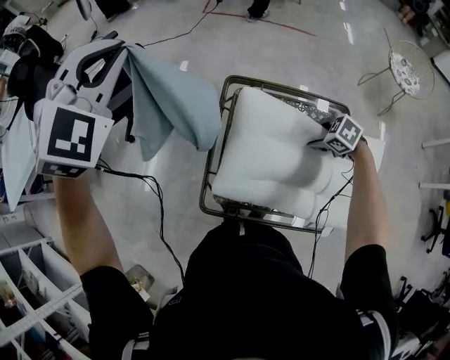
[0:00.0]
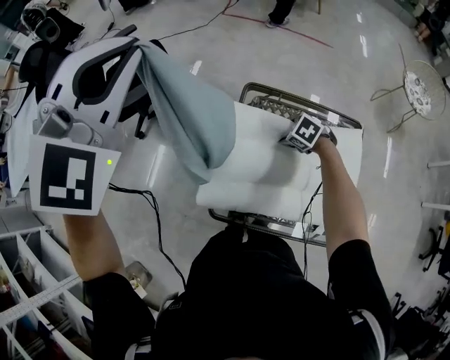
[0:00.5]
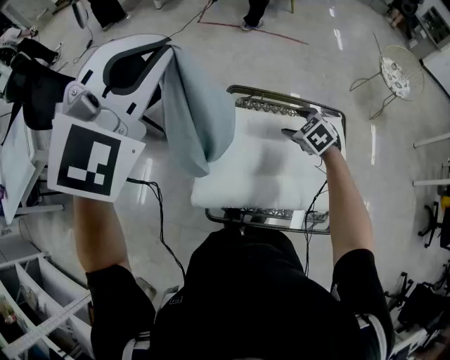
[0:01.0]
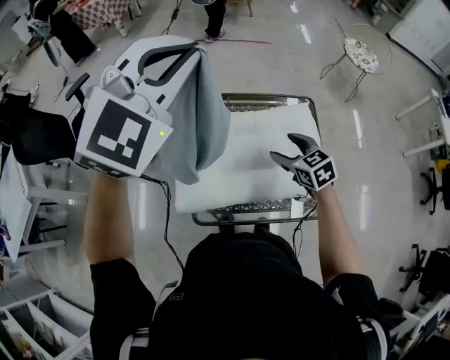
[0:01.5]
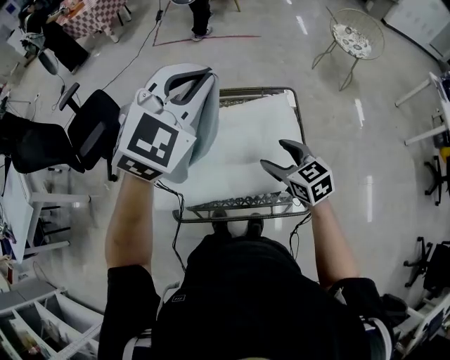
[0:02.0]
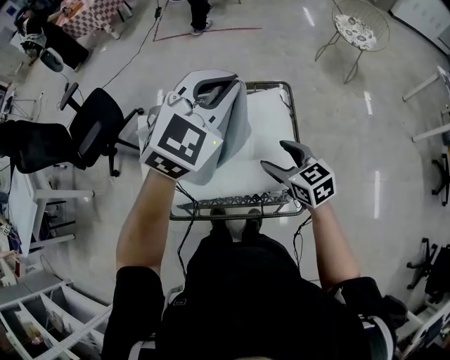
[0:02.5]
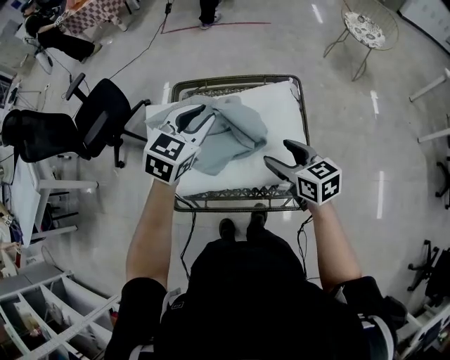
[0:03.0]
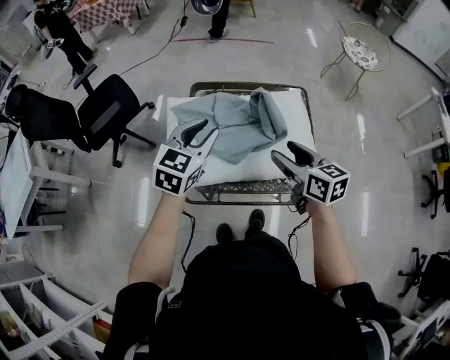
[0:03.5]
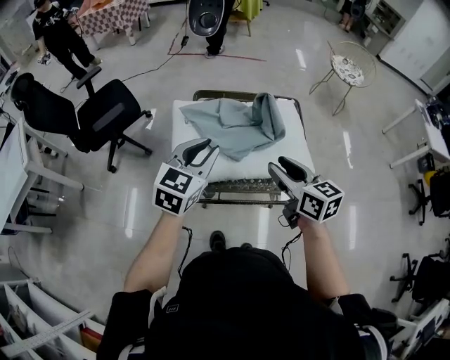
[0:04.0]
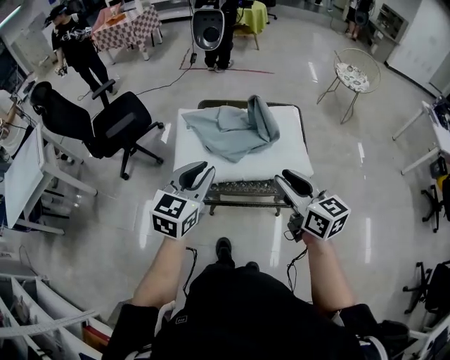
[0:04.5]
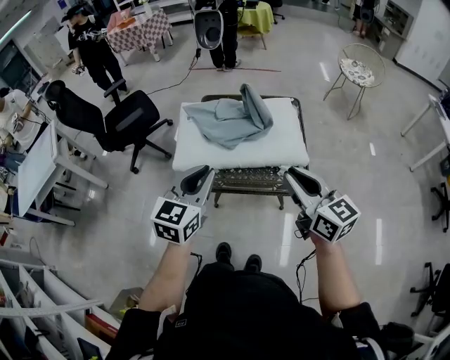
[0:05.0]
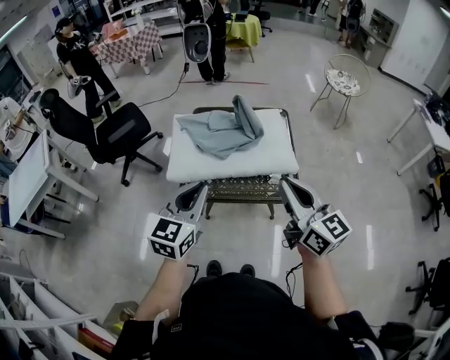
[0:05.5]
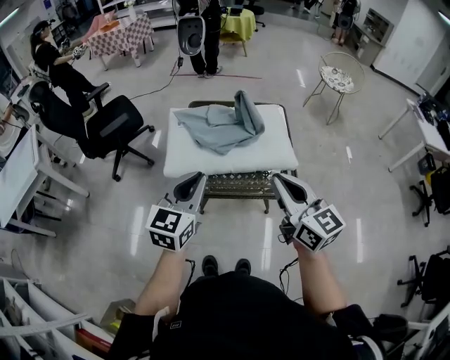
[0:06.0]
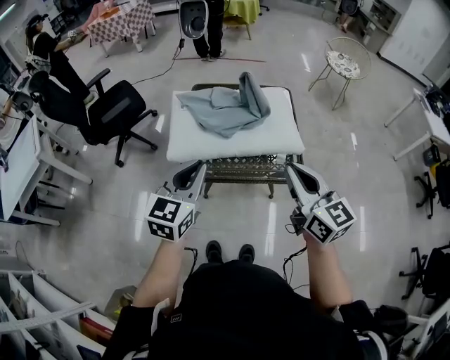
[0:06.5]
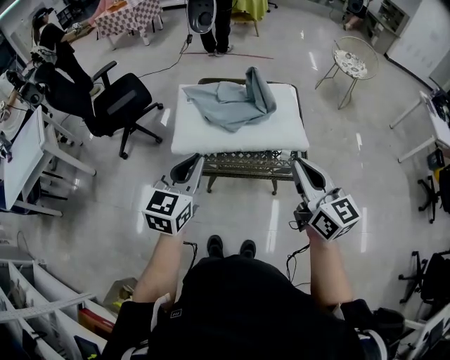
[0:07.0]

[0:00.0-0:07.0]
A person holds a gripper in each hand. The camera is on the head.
0:00.0 to 0:02.0: The left gripper moves approximately 30 cm, and rotates approximately 30 degrees, while the right gripper ends up some 20 cm from where it was, and points its fingers about 40 degrees further upward.
0:02.0 to 0:03.5: The right gripper heads backward, covering approximately 5 cm, and swivels roughly 20 degrees, while the left gripper is displaced downward, to the left and backward by some 25 cm, rotates about 40 degrees, and opens.
0:03.5 to 0:05.0: The left gripper goes approximately 25 cm backward. Meanwhile the right gripper heads backward and upward, covering some 25 cm, turns by some 20 degrees, and closes.
0:05.0 to 0:07.0: The left gripper travels to the left by approximately 5 cm.

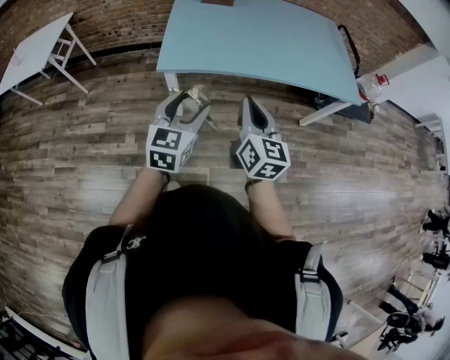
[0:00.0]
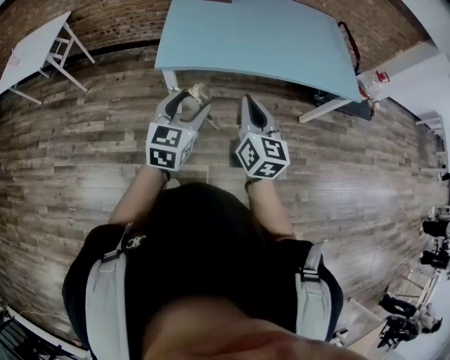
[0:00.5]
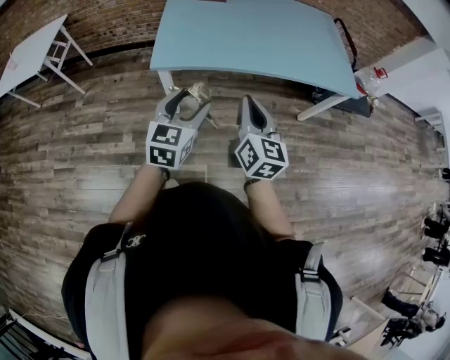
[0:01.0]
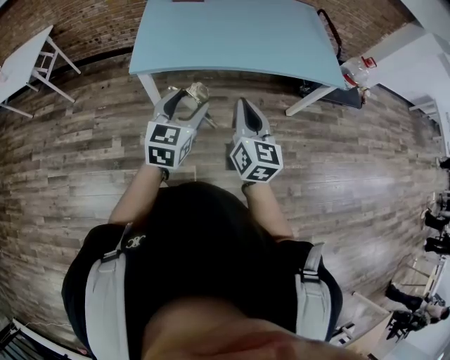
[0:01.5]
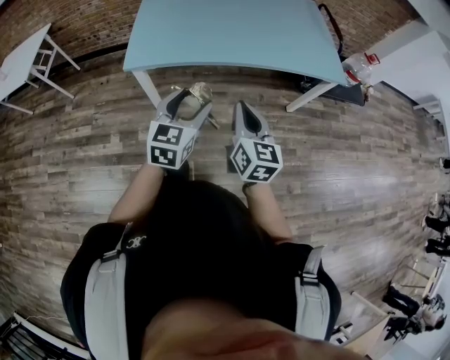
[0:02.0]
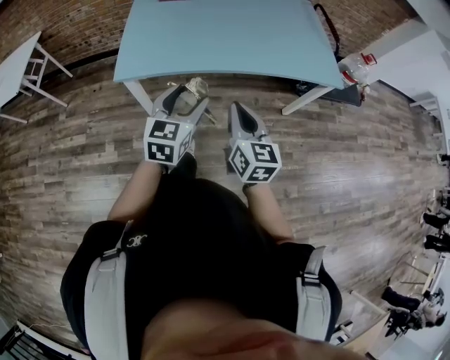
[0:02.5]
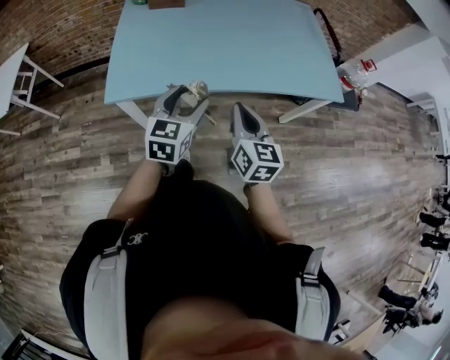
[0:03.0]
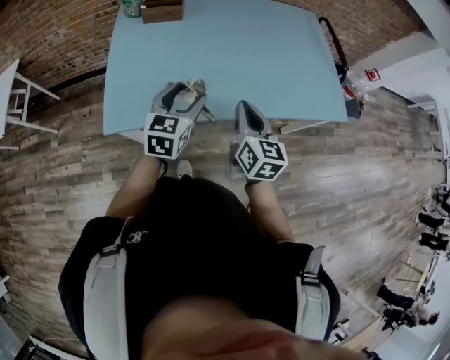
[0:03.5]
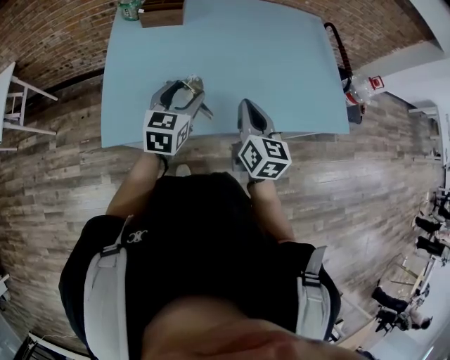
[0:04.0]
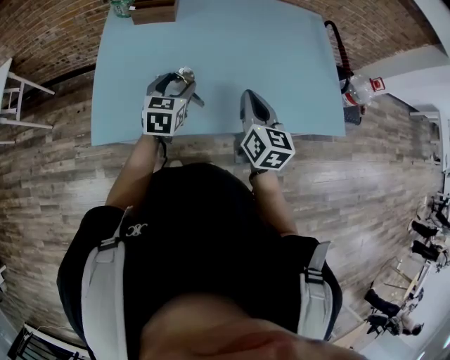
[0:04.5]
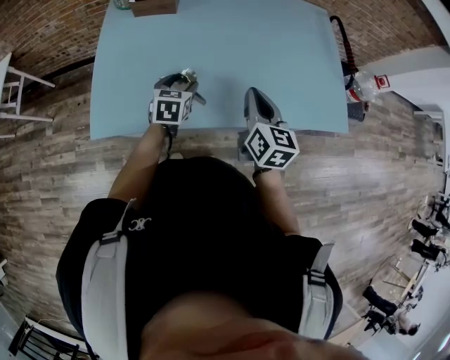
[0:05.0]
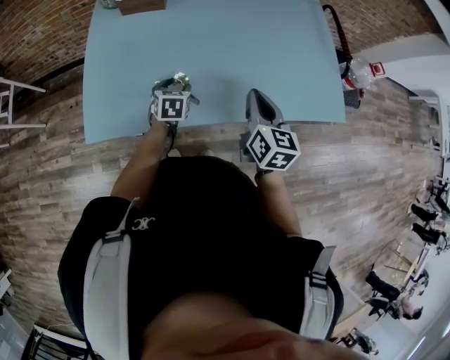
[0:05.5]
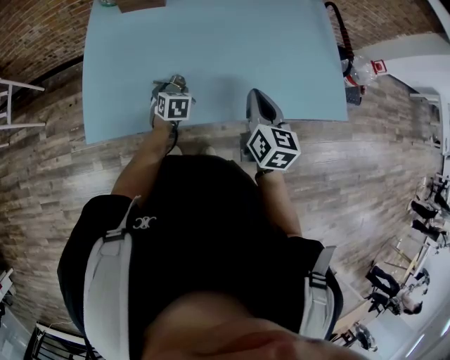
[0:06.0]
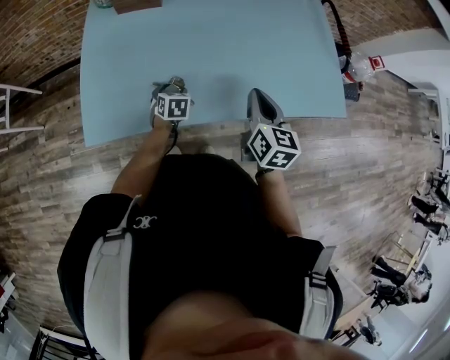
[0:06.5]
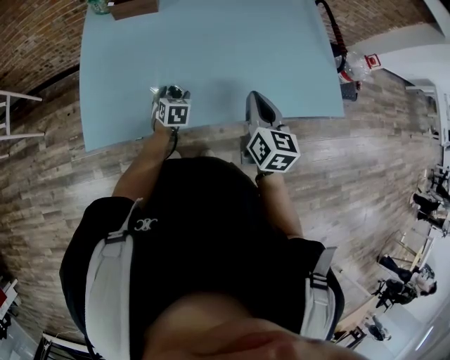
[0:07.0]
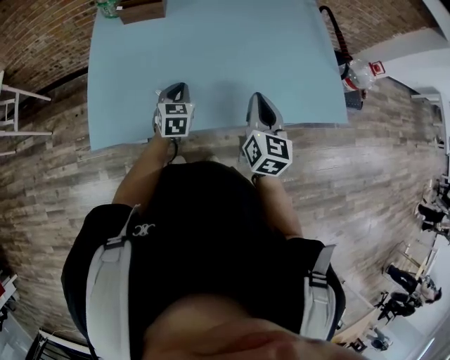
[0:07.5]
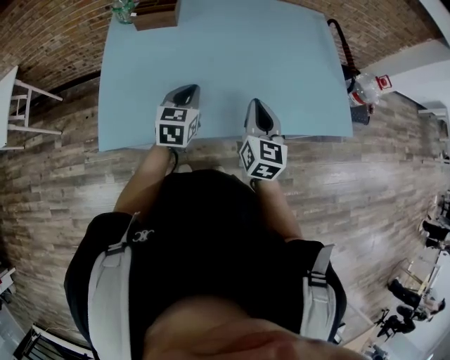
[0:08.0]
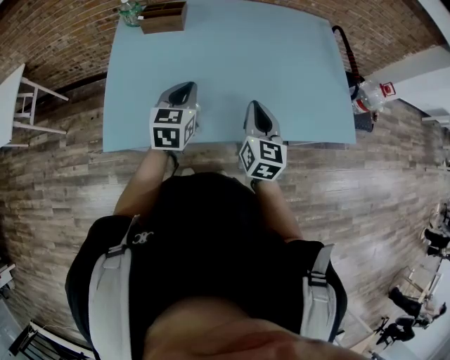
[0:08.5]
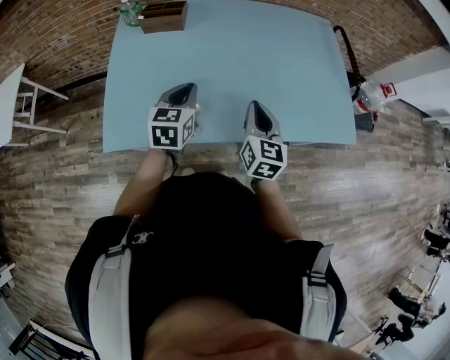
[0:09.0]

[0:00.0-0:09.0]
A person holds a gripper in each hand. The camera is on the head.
0:00.0 to 0:02.0: Both grippers travel together to the right, some 15 cm.
0:02.0 to 0:04.5: The two grippers go roughly 40 cm forward.
0:04.5 to 0:07.0: The left gripper heads downward, covering roughly 20 cm, and swivels roughly 20 degrees.
0:07.0 to 0:09.0: The left gripper goes about 20 cm upward, rotates approximately 20 degrees, and closes up.

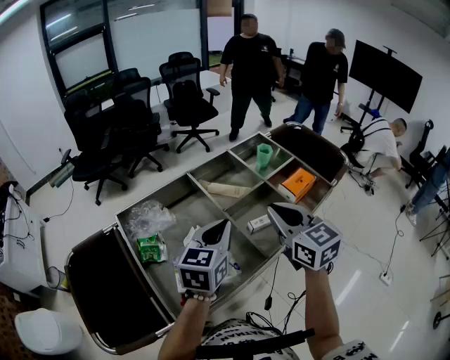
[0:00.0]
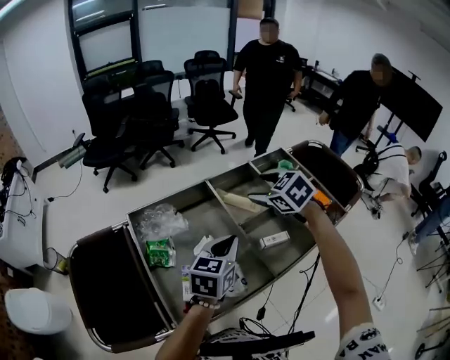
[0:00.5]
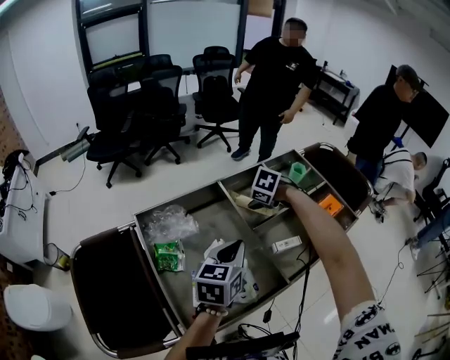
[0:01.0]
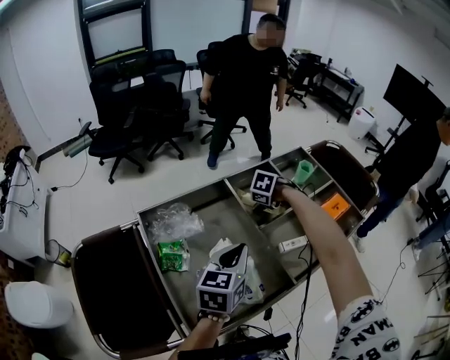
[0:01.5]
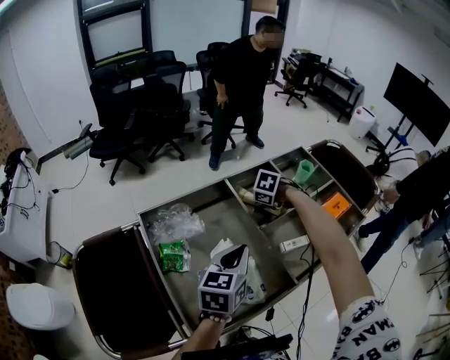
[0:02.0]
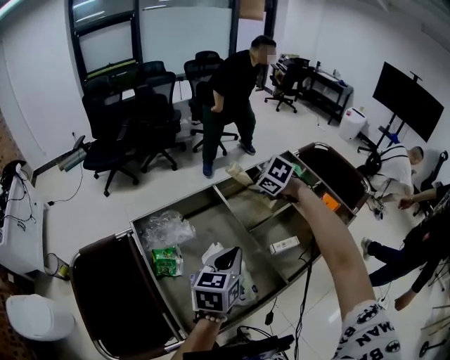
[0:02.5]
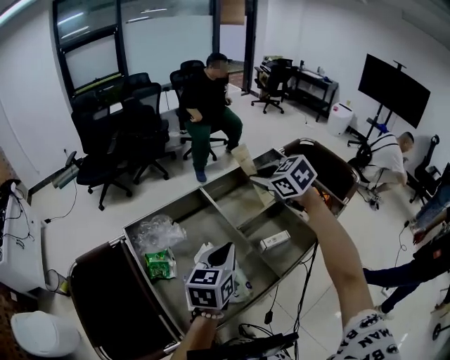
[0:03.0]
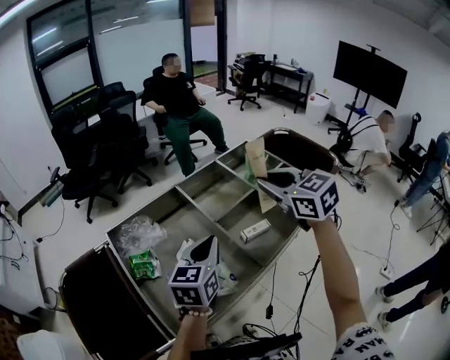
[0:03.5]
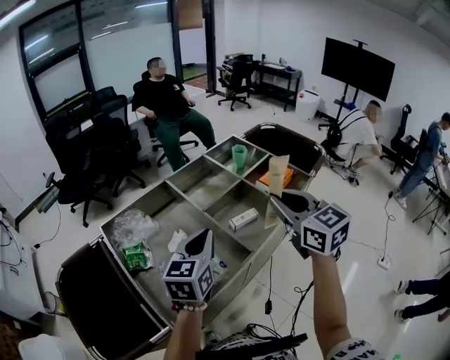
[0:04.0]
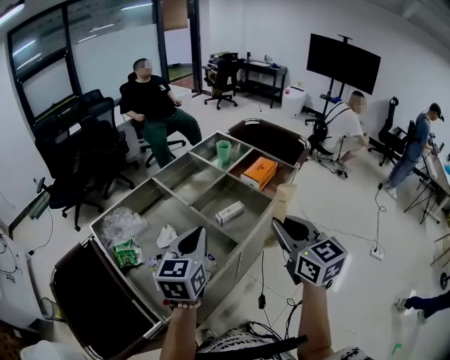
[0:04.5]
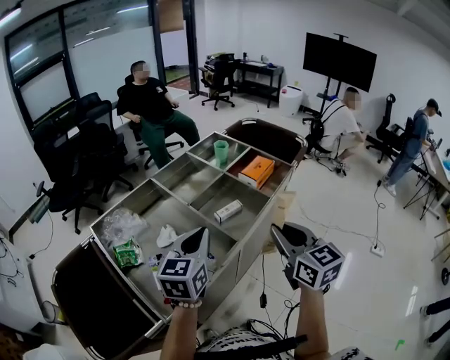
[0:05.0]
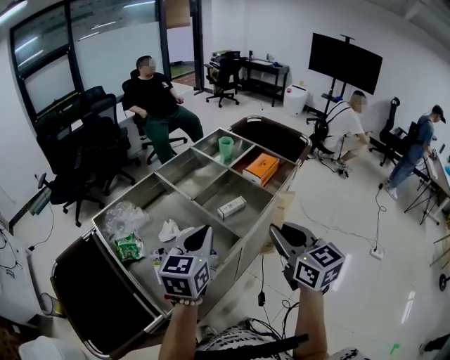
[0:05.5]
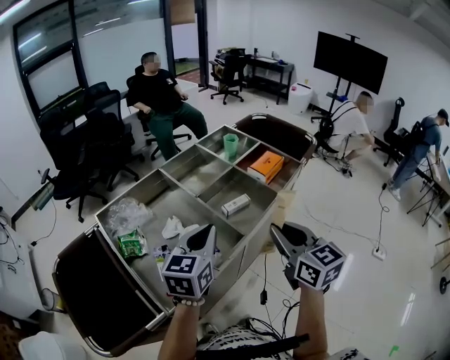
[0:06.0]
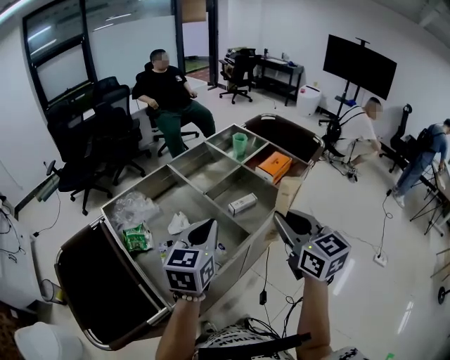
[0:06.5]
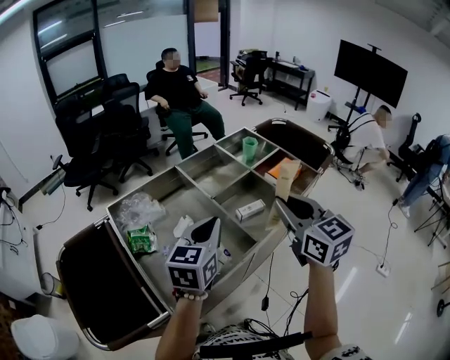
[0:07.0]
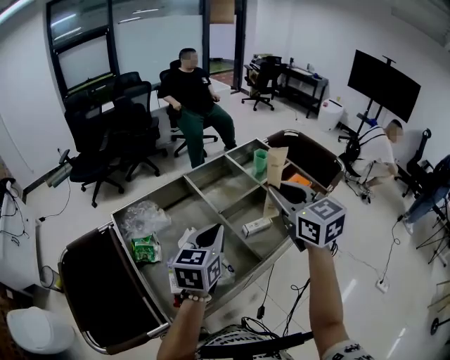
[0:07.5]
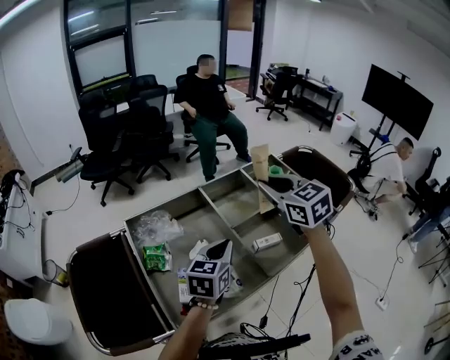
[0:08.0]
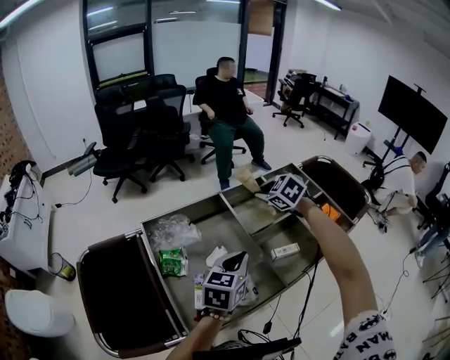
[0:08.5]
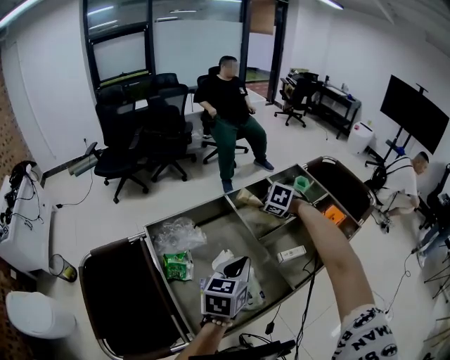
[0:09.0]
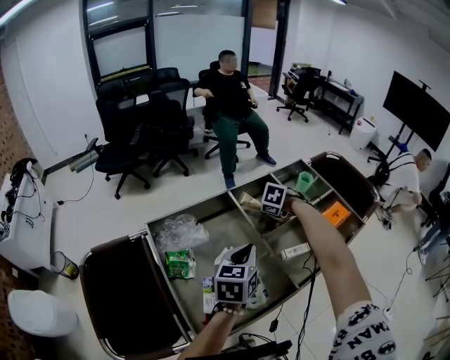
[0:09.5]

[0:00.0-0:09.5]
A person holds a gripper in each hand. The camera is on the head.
0:00.0 to 0:02.0: The right gripper shifts roughly 25 cm downward, angles its fingers downward, by approximately 70 degrees, and opens and closes again, while the left gripper moves downward, roughly 5 cm.
0:02.0 to 0:04.0: The left gripper changes place by about 5 cm, while the right gripper shifts by about 40 cm, and tilts its fingers some 70 degrees upward.
0:04.0 to 0:05.5: The right gripper is displaced backward and downward by about 10 cm.
0:05.5 to 0:07.5: The right gripper goes approximately 20 cm forward, upward and to the left. Meanwhile the left gripper goes roughly 5 cm forward.
0:07.5 to 0:09.5: The right gripper shifts approximately 25 cm downward, and points its fingers some 60 degrees further downward. Meanwhile the left gripper changes place by approximately 5 cm.

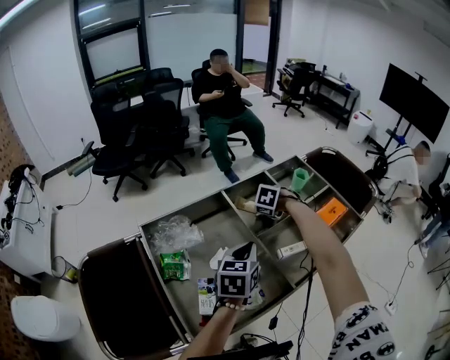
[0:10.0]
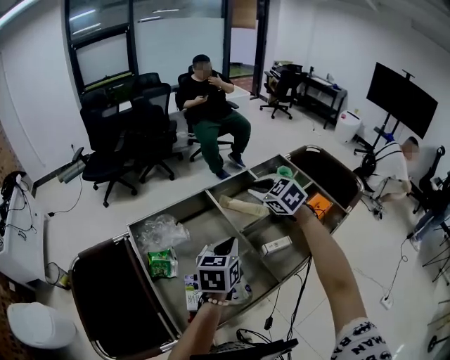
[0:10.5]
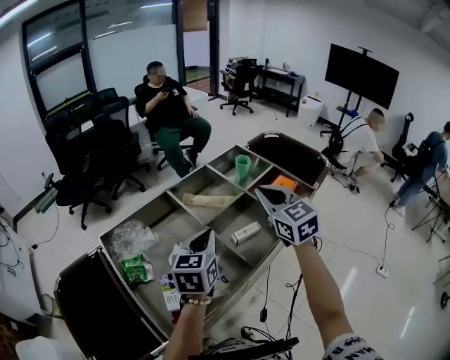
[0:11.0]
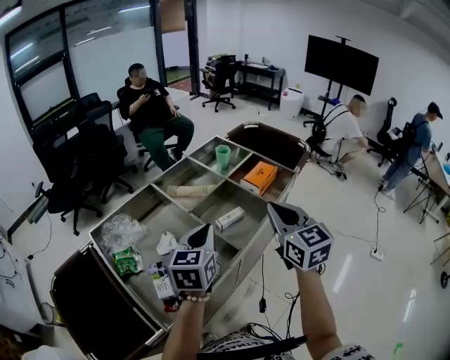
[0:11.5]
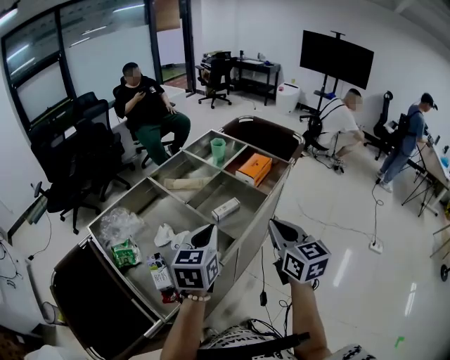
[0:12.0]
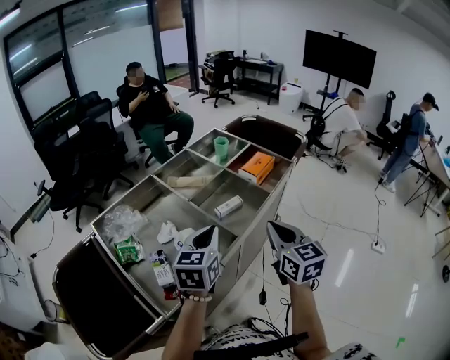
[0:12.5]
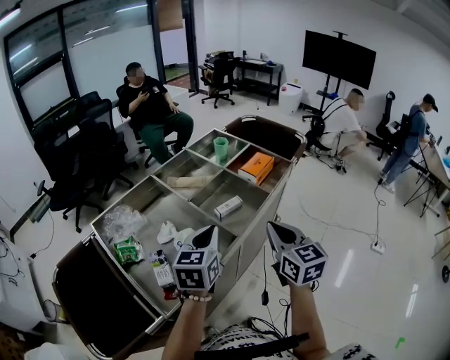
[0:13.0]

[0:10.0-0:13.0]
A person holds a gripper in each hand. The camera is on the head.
0:10.0 to 0:11.5: The right gripper changes place by roughly 40 cm, tilts its fingers approximately 70 degrees upward, and closes up. The left gripper shifts by about 10 cm.
0:11.5 to 0:13.0: The right gripper is displaced downward and backward by approximately 10 cm.
